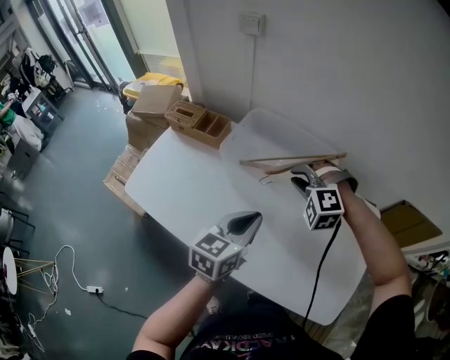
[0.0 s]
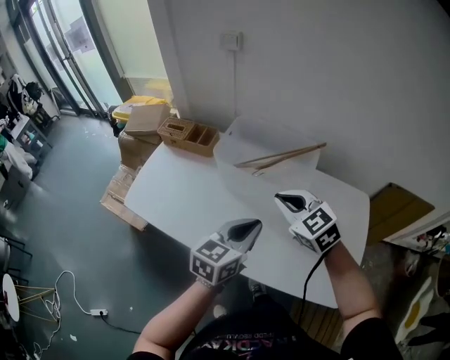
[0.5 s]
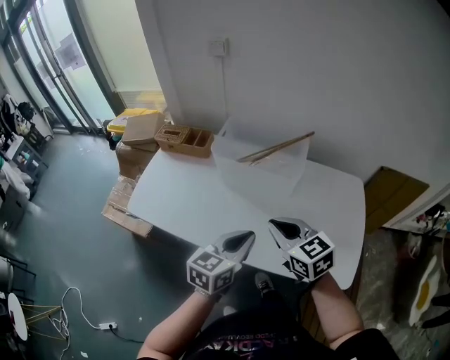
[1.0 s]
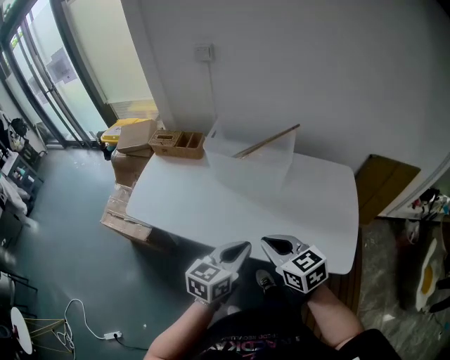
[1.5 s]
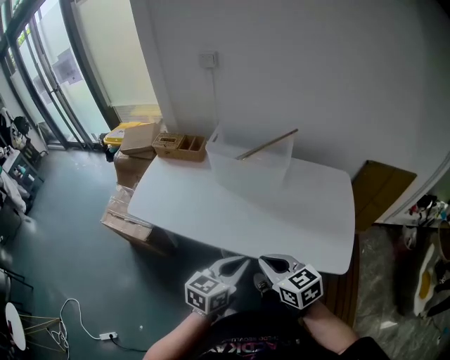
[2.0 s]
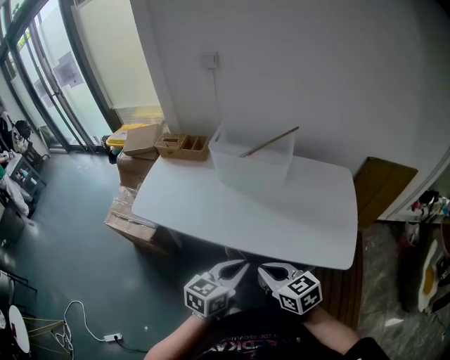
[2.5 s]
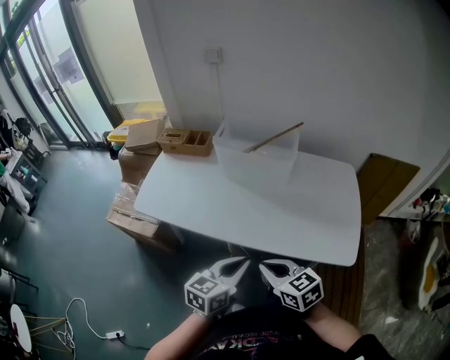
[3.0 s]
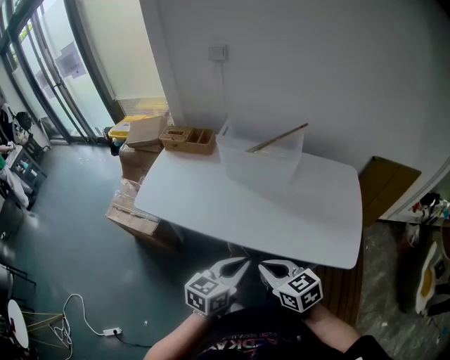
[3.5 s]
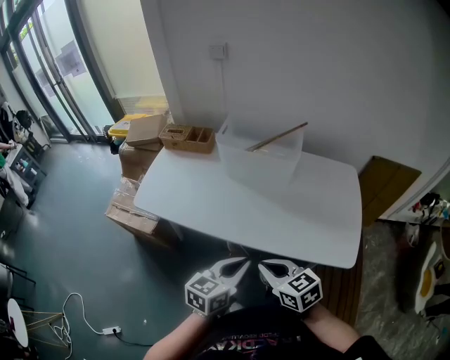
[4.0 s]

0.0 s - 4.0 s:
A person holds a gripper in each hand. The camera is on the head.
0.0 s - 2.0 s: Both grippers move backward, approximately 35 cm. The right gripper rolls clockwise, seen from behind, by approximately 90 degrees.
2.0 s - 4.0 s: The right gripper changes place by about 5 cm.

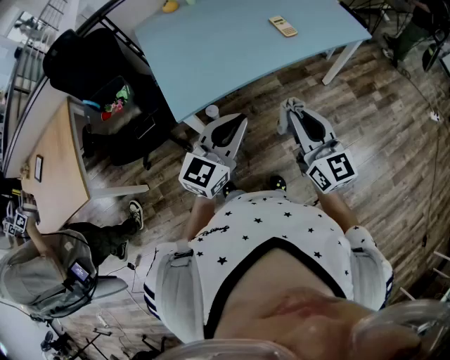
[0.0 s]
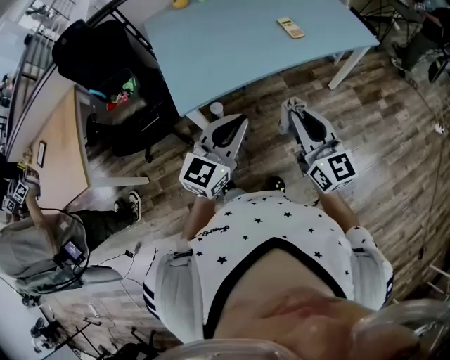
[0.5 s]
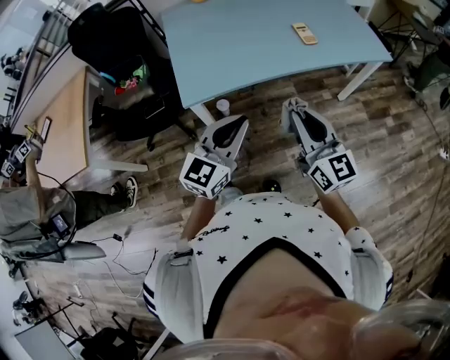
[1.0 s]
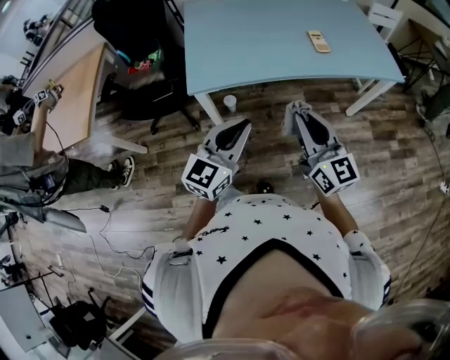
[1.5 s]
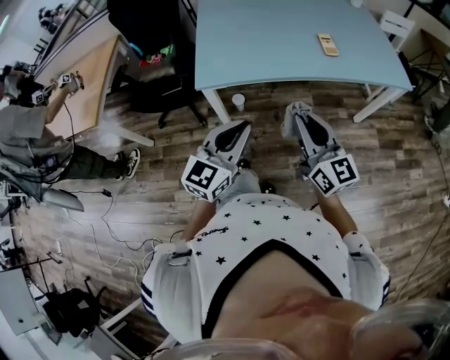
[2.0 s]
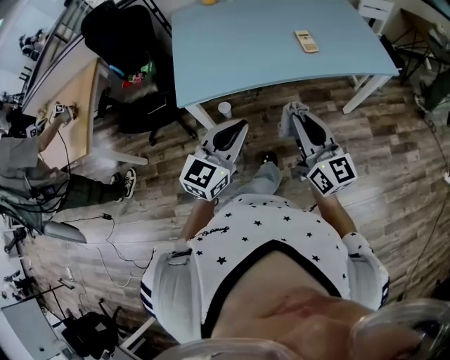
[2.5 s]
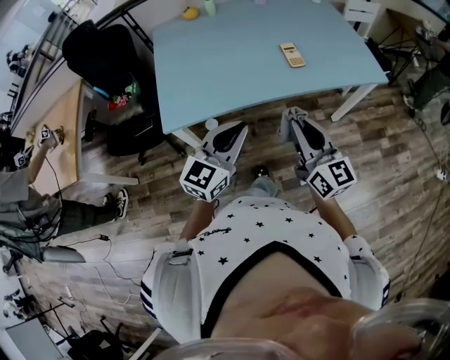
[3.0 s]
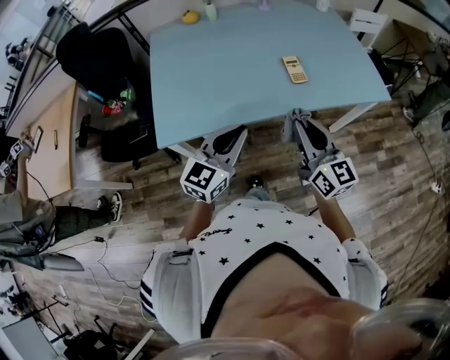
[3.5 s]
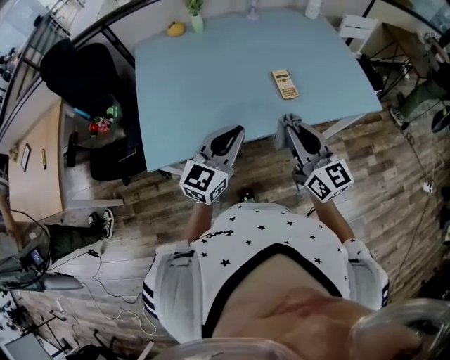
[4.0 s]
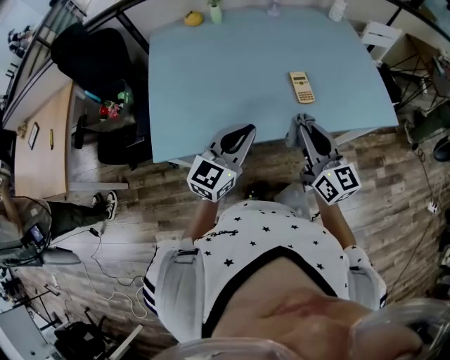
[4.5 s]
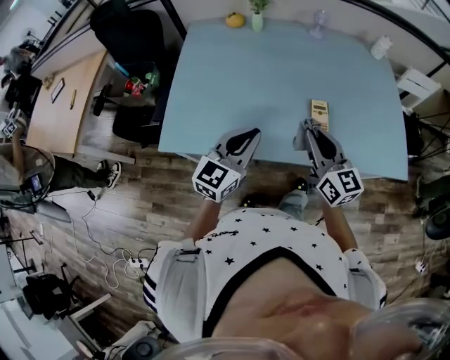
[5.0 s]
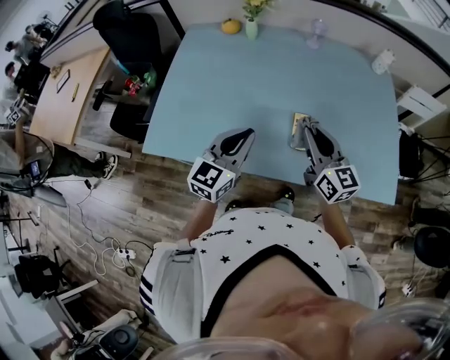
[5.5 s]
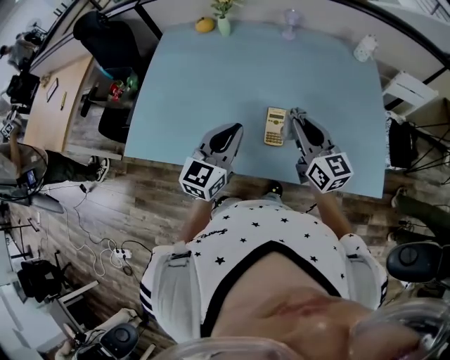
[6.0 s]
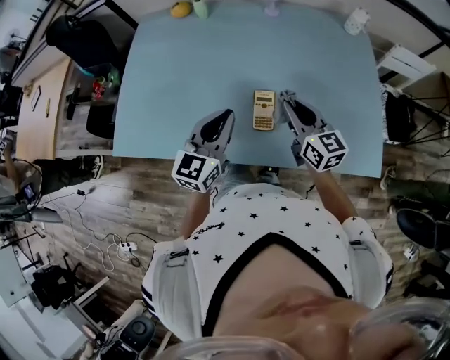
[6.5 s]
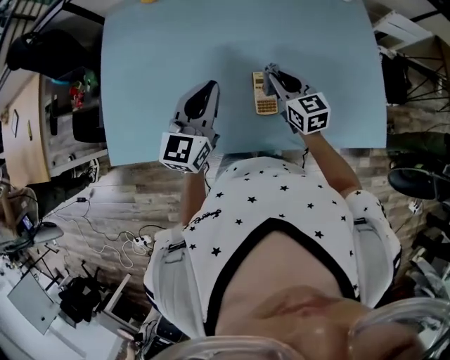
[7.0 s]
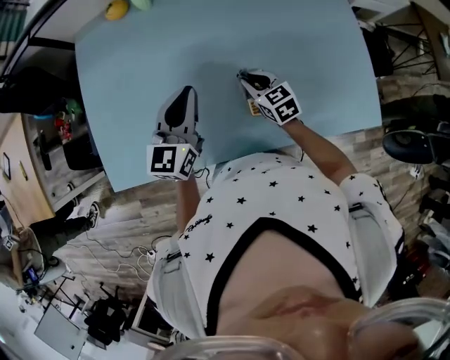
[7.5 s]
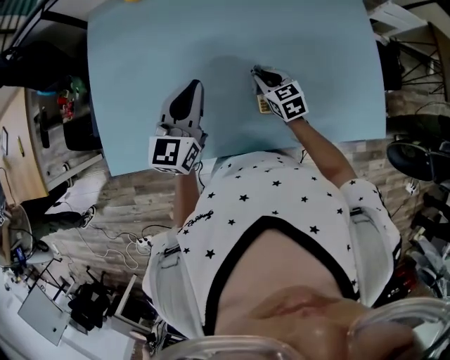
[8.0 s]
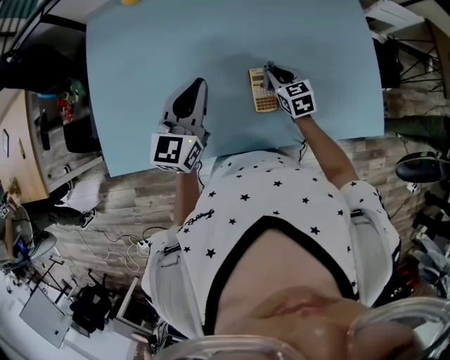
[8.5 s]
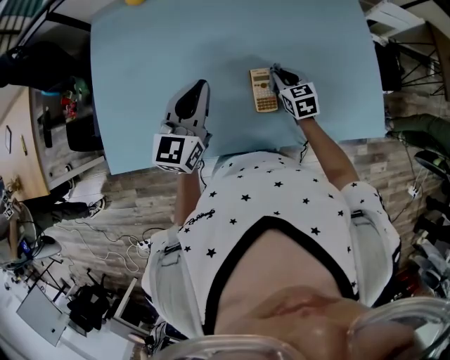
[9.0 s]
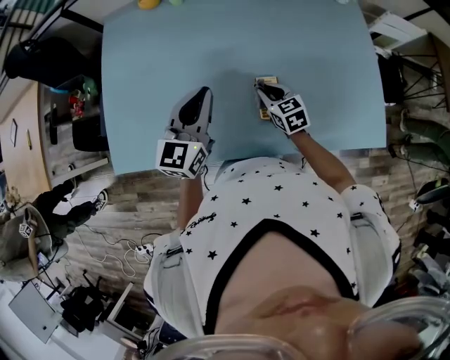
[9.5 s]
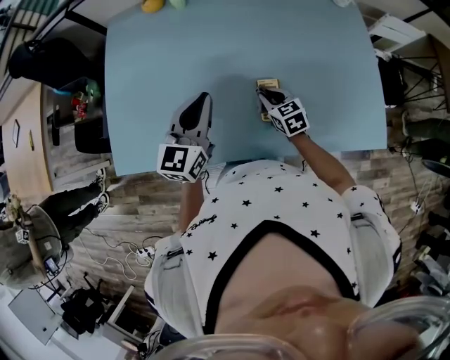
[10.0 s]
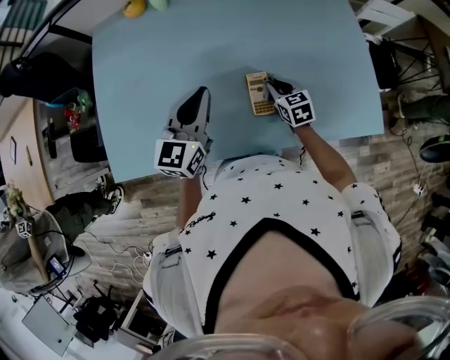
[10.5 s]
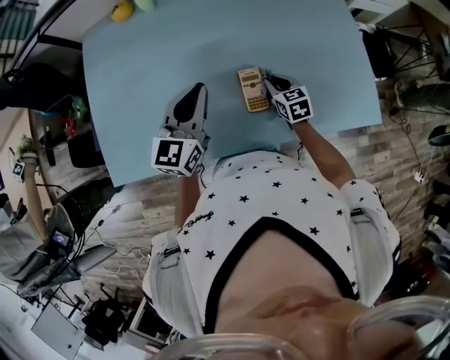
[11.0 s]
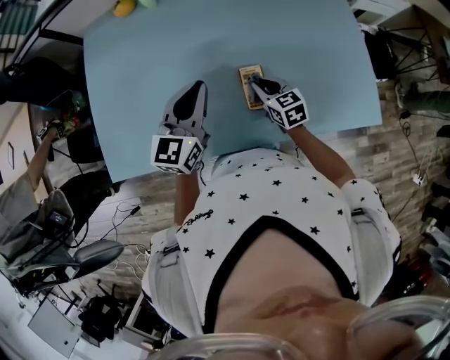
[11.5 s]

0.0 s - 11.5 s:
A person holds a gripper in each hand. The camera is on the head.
0.0 s - 2.0 s: The left gripper is displaced backward by about 5 cm, and turns by about 20 degrees; the right gripper changes its angle by some 20 degrees.
2.0 s - 4.0 s: The two grippers go approximately 25 cm forward.
4.0 s - 6.0 s: The grippers both shift forward and to the right by roughly 25 cm. The left gripper swivels approximately 30 degrees.
6.0 s - 7.5 s: The left gripper goes roughly 15 cm forward and to the left; the right gripper travels downward and forward by roughly 20 cm, and tilts its fingers roughly 30 degrees downward.
7.5 s - 9.5 s: The right gripper reaches about 10 cm to the right, then returns.
9.5 s - 11.5 s: The right gripper travels to the right and back again, some 10 cm each way.

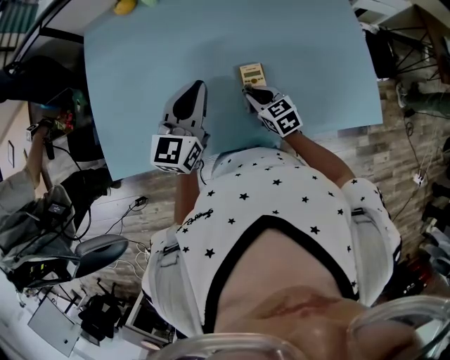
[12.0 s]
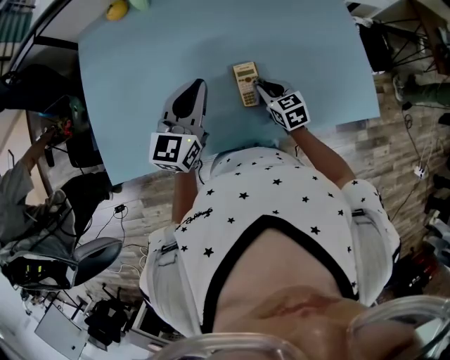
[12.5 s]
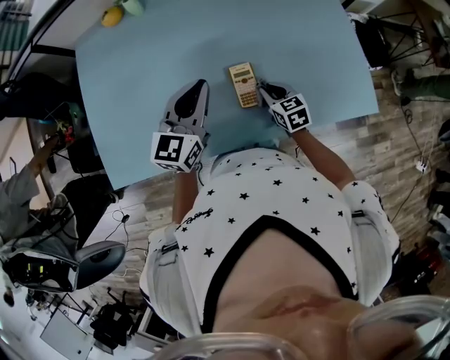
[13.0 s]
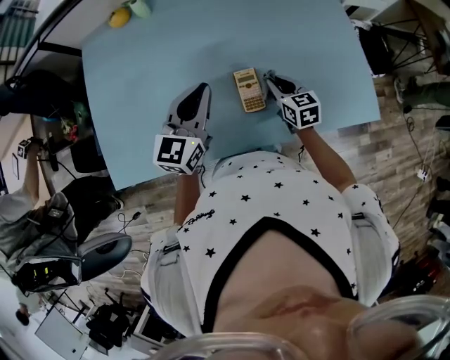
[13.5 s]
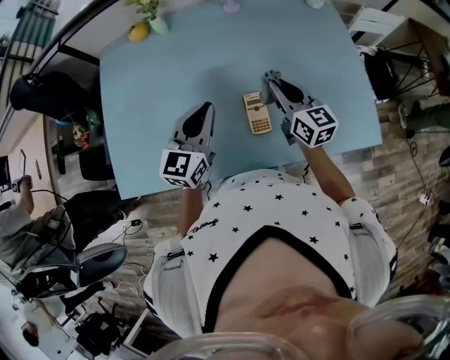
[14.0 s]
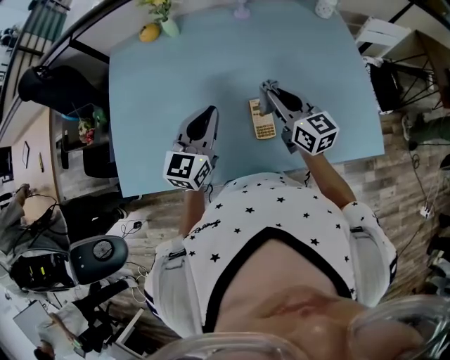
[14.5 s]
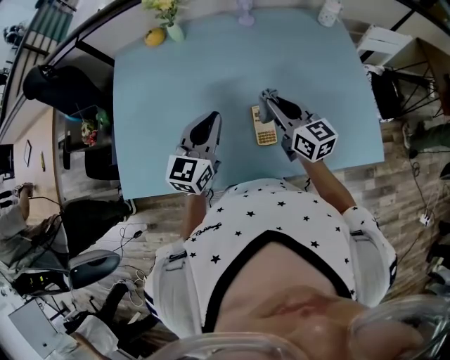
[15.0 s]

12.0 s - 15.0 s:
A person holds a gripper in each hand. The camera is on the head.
12.0 s - 13.5 s: The right gripper is displaced to the right by approximately 10 cm.
13.5 s - 15.0 s: The right gripper is displaced upward by about 15 cm, and rotates approximately 30 degrees.

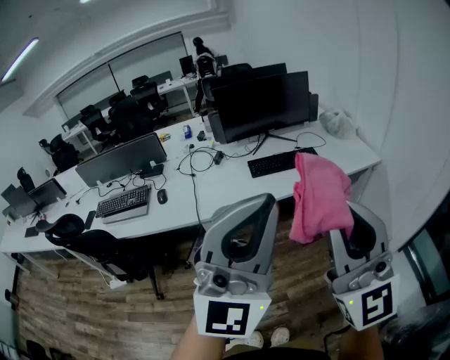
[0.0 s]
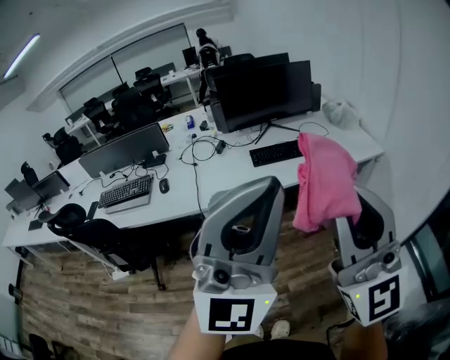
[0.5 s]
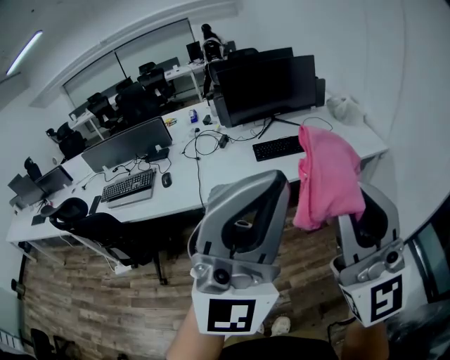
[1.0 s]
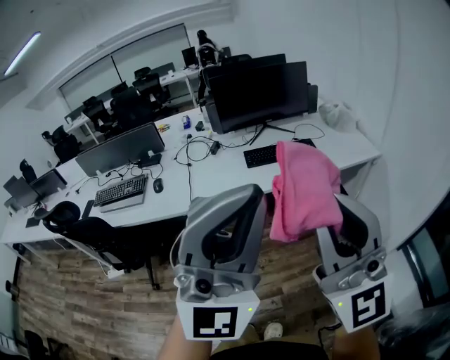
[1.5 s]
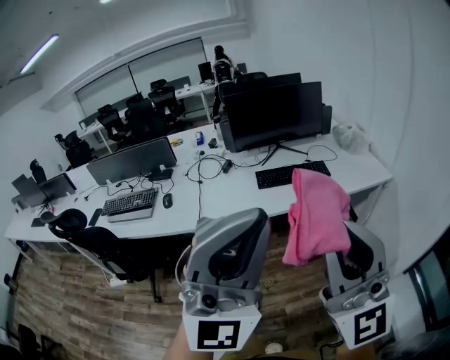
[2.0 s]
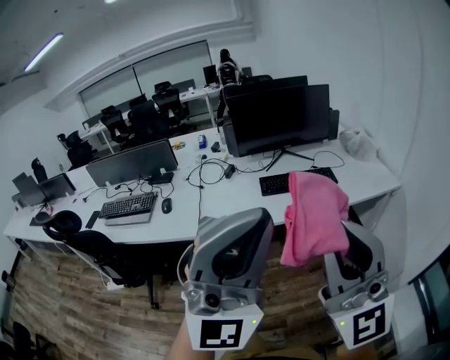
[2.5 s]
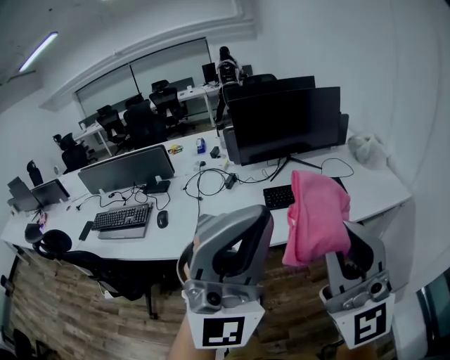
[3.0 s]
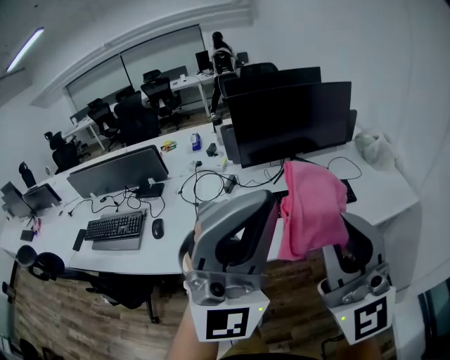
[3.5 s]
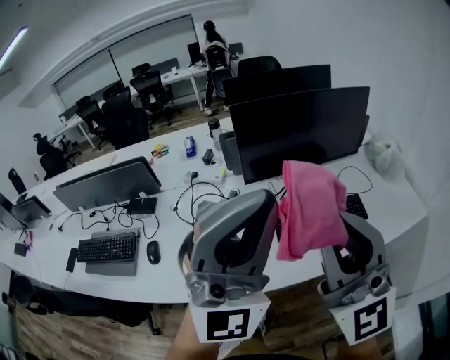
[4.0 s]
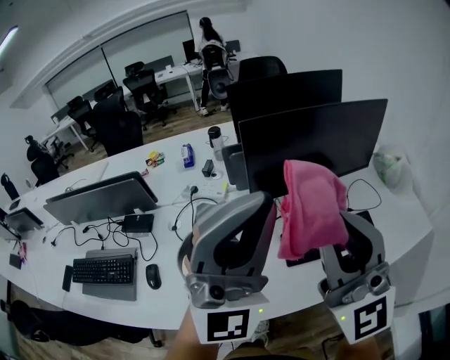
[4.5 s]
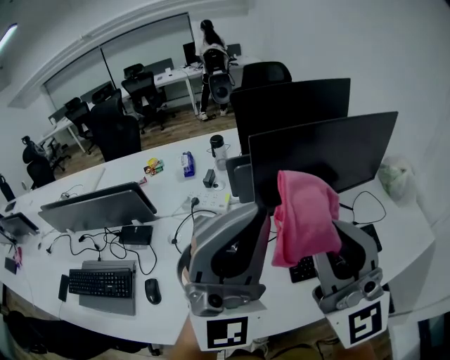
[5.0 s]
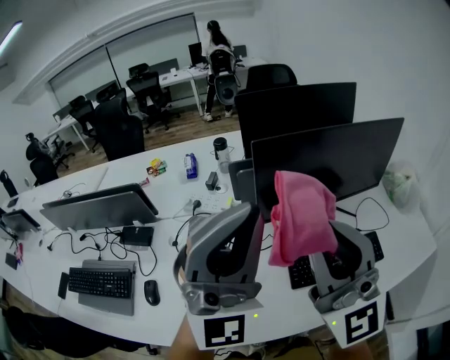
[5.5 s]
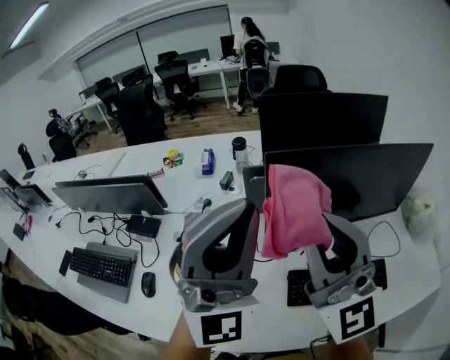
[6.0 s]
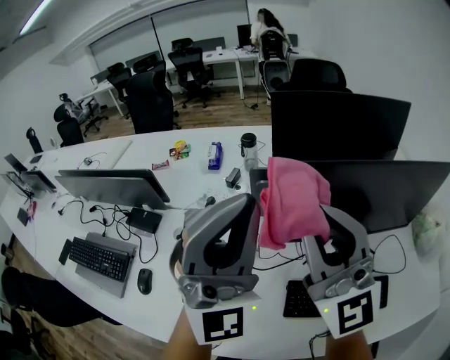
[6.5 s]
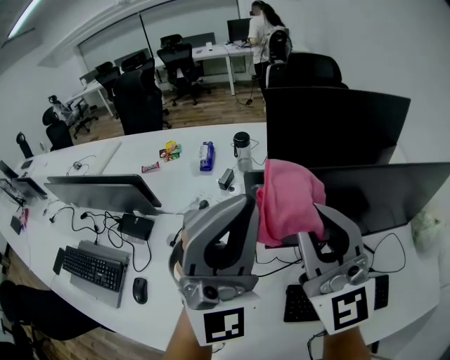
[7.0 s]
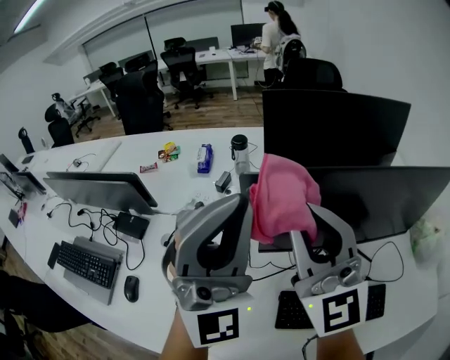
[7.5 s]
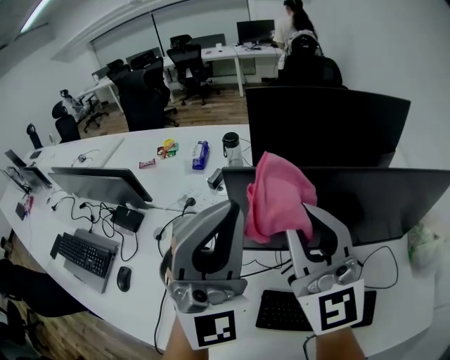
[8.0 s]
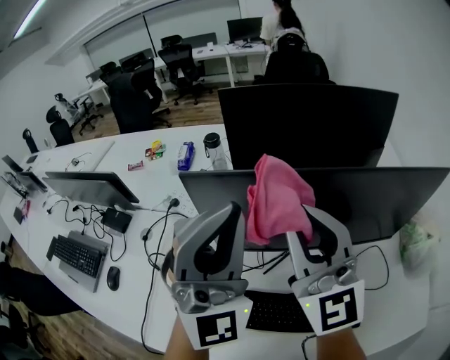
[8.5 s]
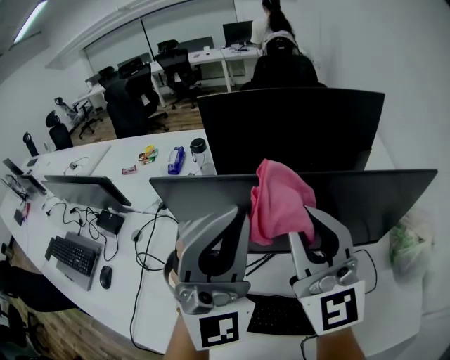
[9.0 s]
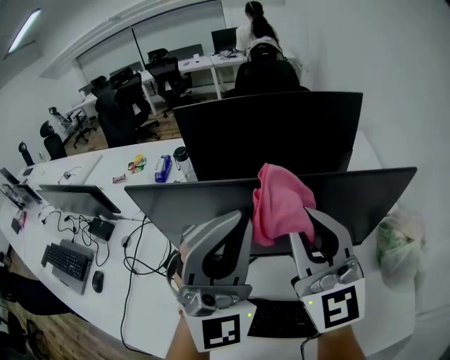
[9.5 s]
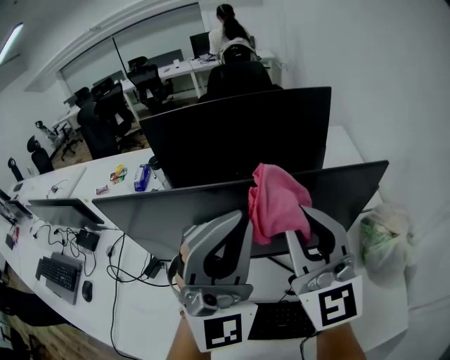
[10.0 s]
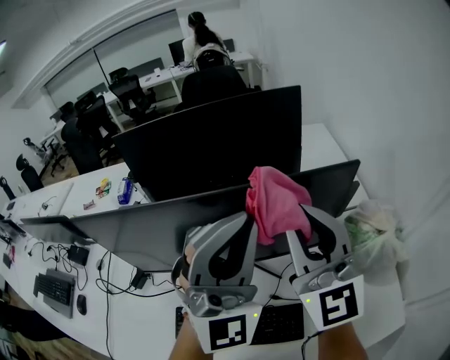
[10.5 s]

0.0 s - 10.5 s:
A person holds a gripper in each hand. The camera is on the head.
0.0 s - 2.0 s: The grippers move only a little.
2.0 s - 4.0 s: Both grippers are carried forward, some 40 cm.
4.0 s - 6.5 s: Both grippers travel together forward, roughly 30 cm. The left gripper turns by about 20 degrees.
6.5 s - 8.5 s: The left gripper goes roughly 15 cm to the right, while the right gripper goes some 15 cm to the right, forward and downward.
8.5 s - 10.5 s: Both grippers travel together to the right, approximately 30 cm.
